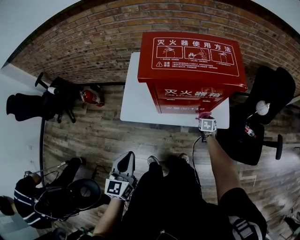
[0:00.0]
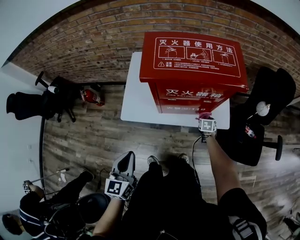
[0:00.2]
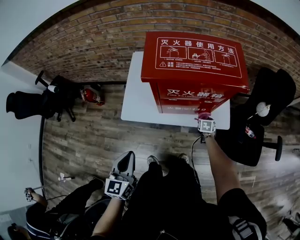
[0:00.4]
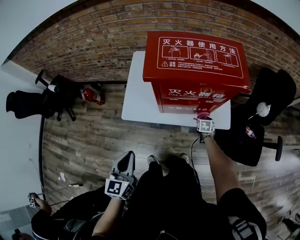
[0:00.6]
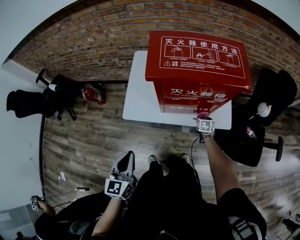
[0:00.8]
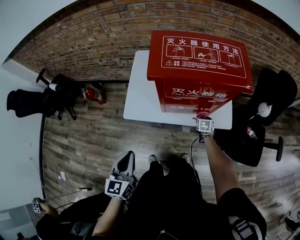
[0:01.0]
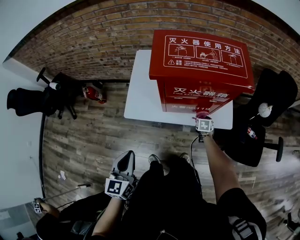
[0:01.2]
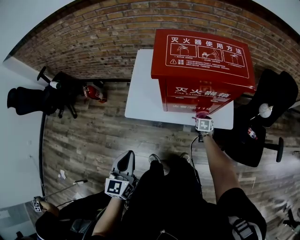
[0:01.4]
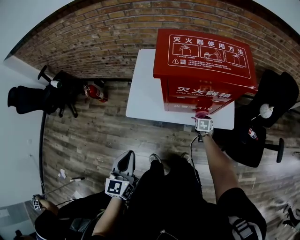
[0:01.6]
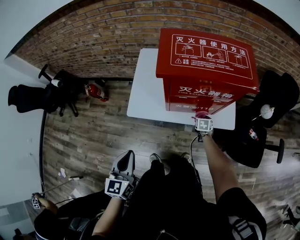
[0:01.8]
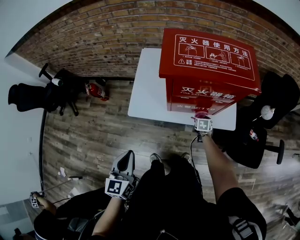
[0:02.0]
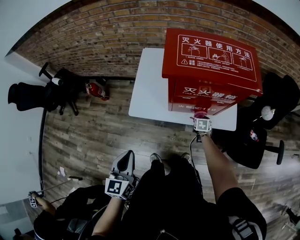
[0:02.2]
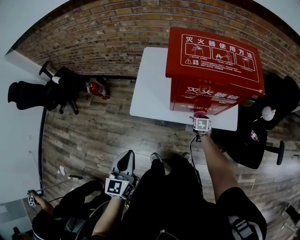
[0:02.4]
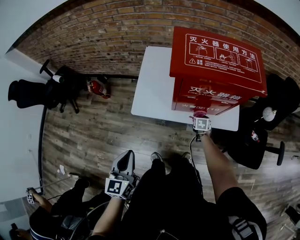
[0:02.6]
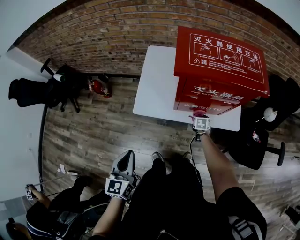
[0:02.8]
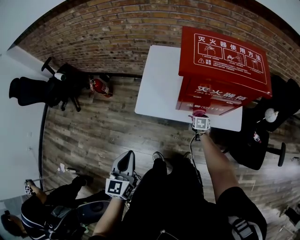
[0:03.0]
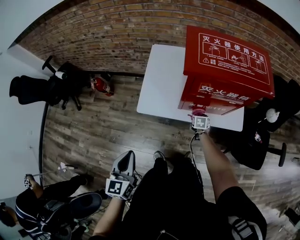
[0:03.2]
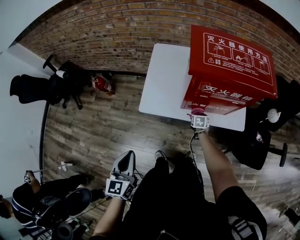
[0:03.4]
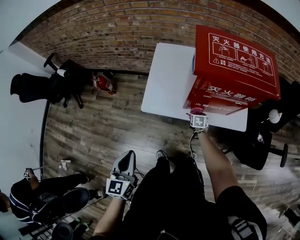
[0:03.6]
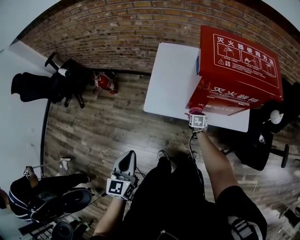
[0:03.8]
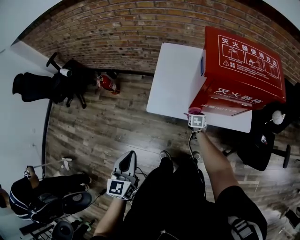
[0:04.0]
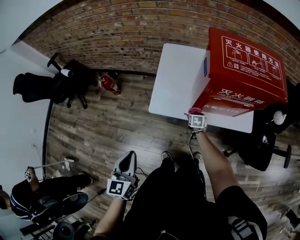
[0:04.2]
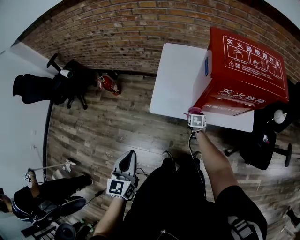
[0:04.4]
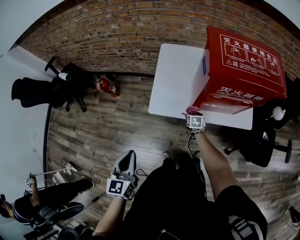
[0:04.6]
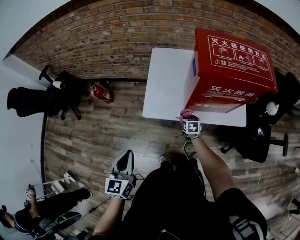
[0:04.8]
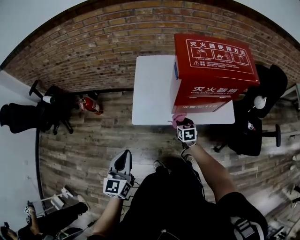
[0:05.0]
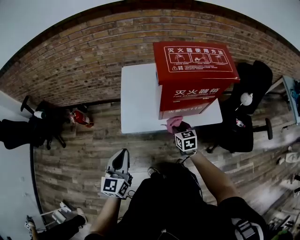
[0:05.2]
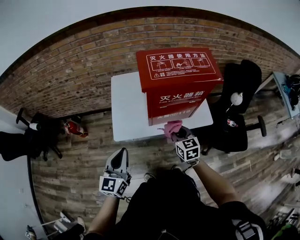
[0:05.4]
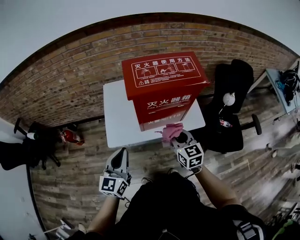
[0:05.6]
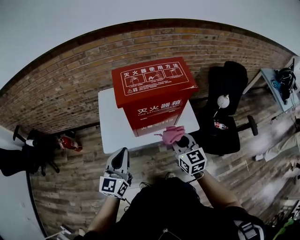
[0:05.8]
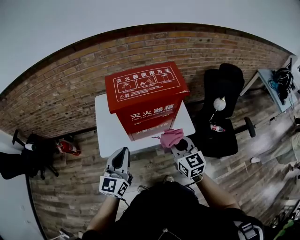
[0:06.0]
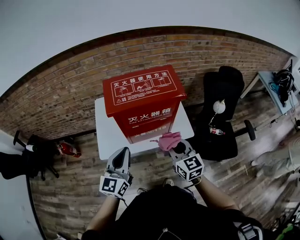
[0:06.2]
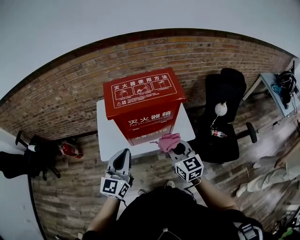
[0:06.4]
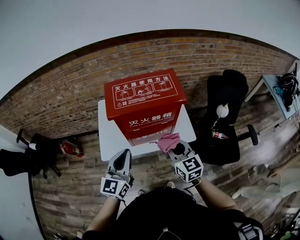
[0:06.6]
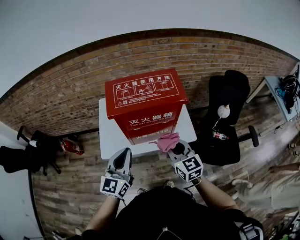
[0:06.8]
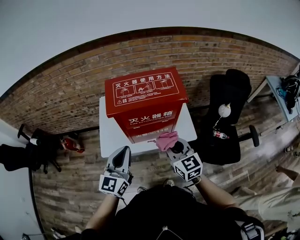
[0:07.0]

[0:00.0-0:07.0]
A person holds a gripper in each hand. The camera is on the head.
0:00.0 to 0:01.4: The right gripper moves to the left, roughly 5 cm.
0:01.4 to 0:02.8: The two grippers go some 5 cm to the left.
0:02.8 to 0:04.2: The left gripper travels to the left by roughly 10 cm. Meanwhile the right gripper moves to the left, approximately 15 cm.
0:04.2 to 0:05.6: The left gripper moves to the right, forward and upward, some 20 cm, and swivels approximately 30 degrees. Meanwhile the right gripper shifts approximately 35 cm upward, and angles its fingers upward, by roughly 40 degrees.
0:05.6 to 0:07.0: The left gripper is displaced to the right and upward by some 15 cm, while the right gripper goes some 10 cm upward and to the right.

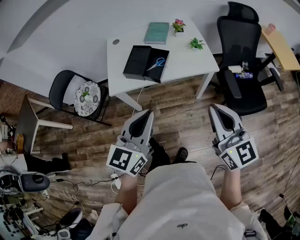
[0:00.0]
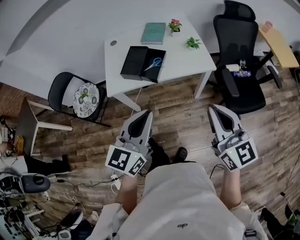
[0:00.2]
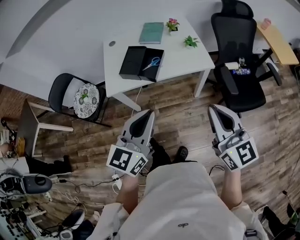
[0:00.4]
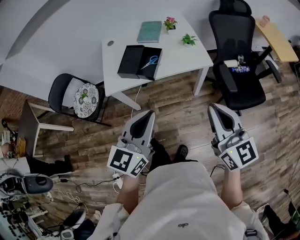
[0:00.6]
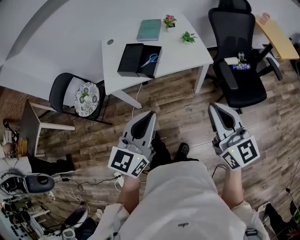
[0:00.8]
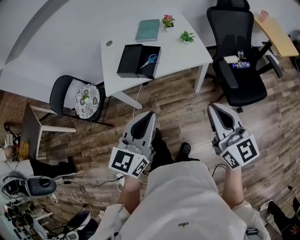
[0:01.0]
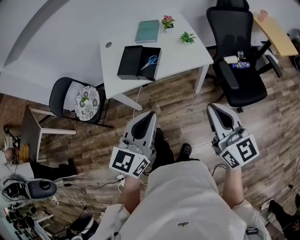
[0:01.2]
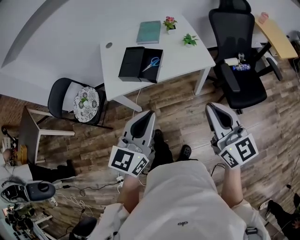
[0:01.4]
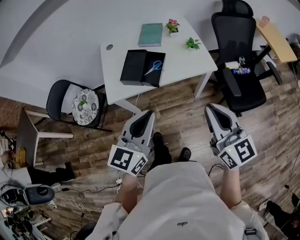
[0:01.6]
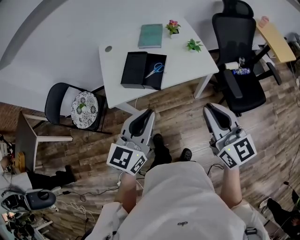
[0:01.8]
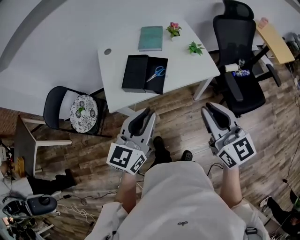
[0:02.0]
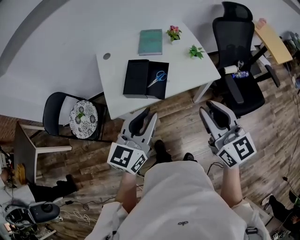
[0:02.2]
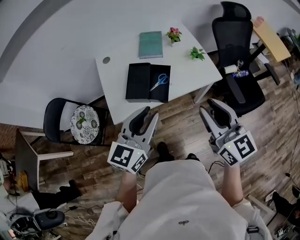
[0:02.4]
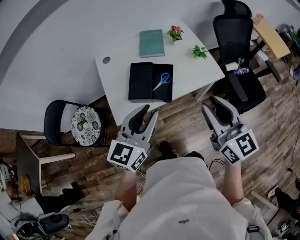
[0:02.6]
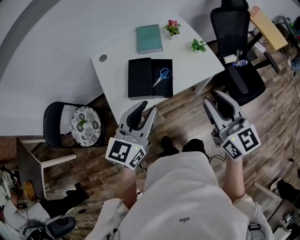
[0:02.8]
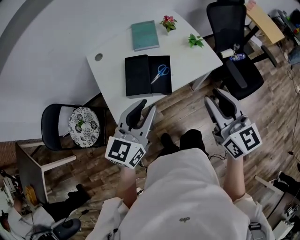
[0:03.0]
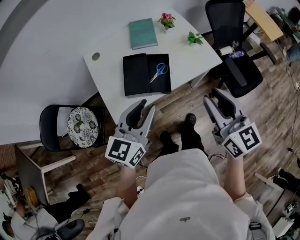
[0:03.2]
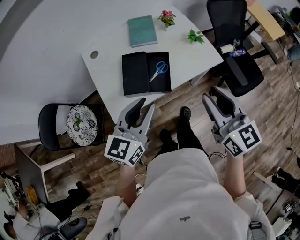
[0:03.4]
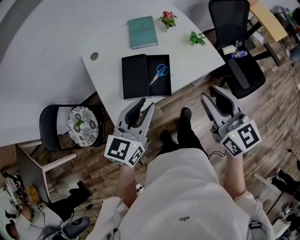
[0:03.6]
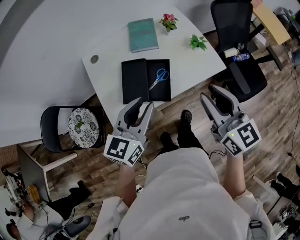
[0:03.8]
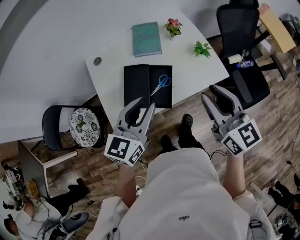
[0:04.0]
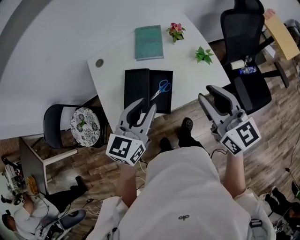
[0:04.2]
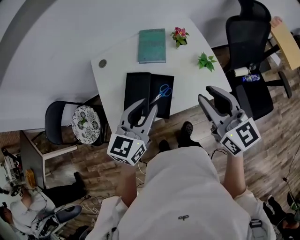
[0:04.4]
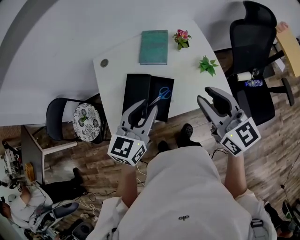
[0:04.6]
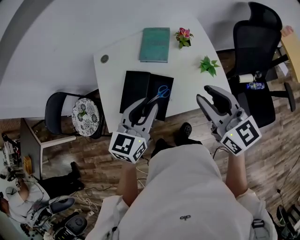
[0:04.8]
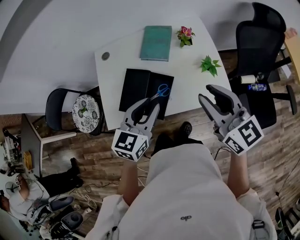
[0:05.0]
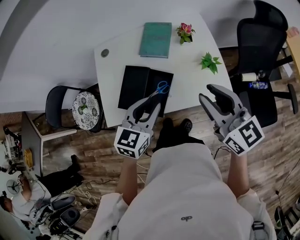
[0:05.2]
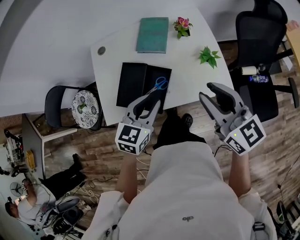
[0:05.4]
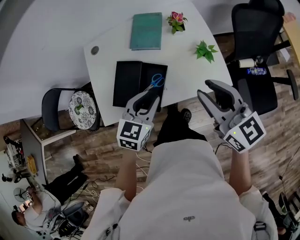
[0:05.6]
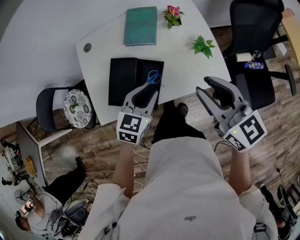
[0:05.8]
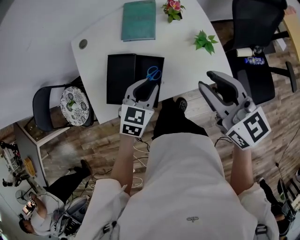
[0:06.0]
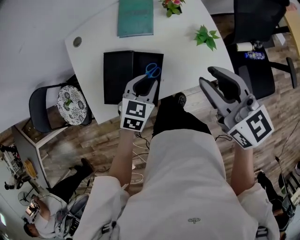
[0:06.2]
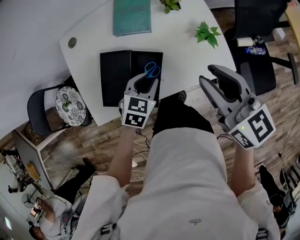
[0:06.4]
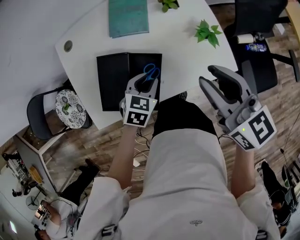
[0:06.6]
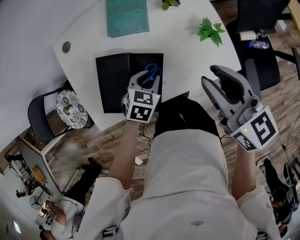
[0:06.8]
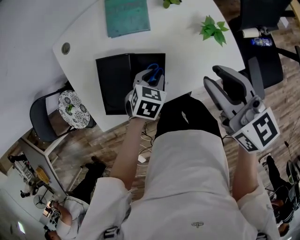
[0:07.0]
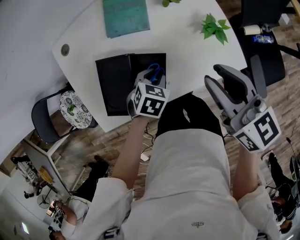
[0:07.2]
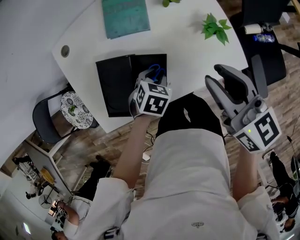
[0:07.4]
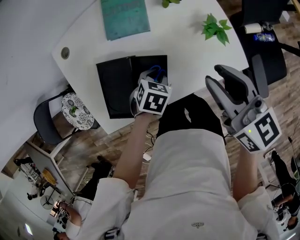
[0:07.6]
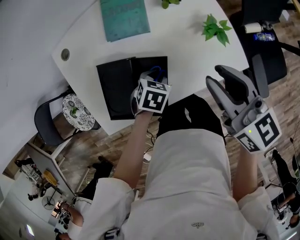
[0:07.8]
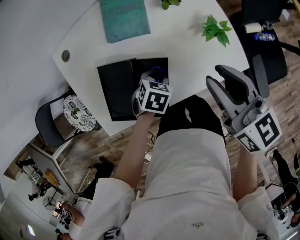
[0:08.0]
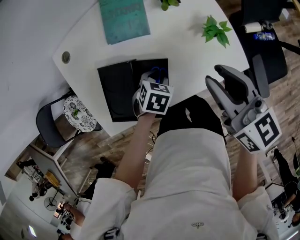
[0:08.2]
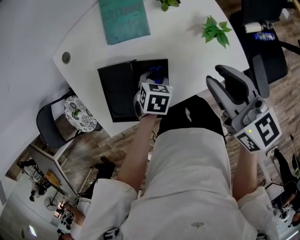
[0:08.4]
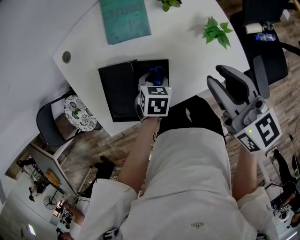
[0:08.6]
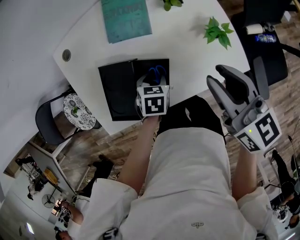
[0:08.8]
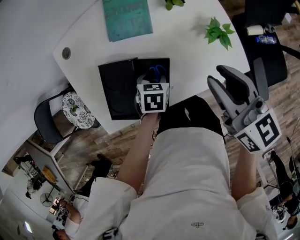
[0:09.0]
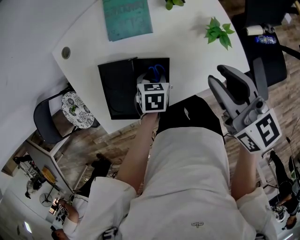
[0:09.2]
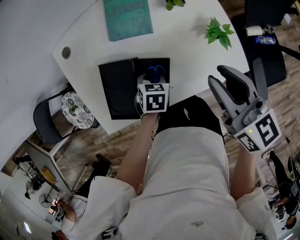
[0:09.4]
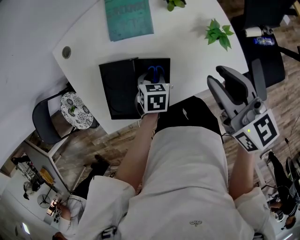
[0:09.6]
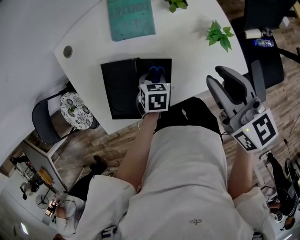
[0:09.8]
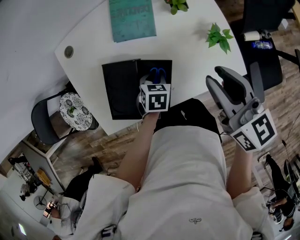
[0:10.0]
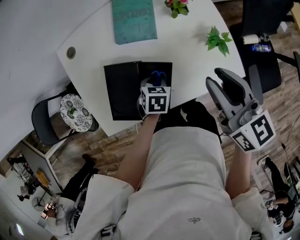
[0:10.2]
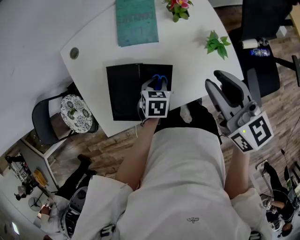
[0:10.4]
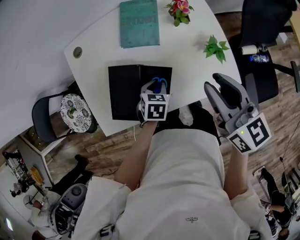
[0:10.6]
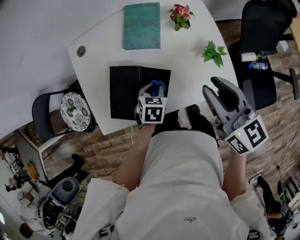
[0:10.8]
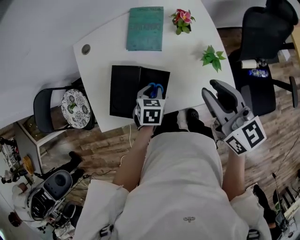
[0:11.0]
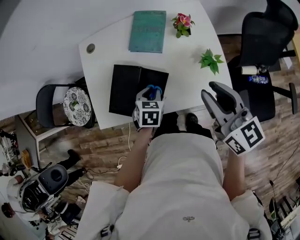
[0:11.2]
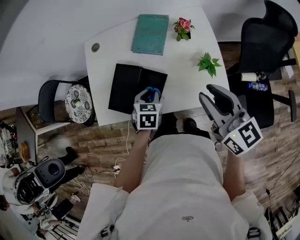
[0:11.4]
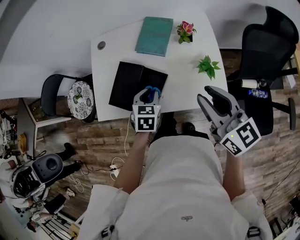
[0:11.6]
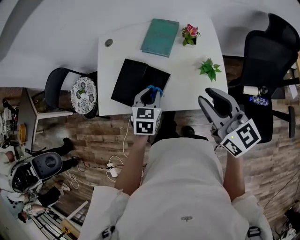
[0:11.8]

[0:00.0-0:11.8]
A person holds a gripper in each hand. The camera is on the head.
0:00.0 to 0:01.4: The grippers move only a little.
0:01.4 to 0:03.0: Both grippers travel together forward and to the left, about 20 cm. The right gripper opens its fingers. Meanwhile the left gripper opens its fingers.
0:03.0 to 0:04.4: The two grippers go about 15 cm forward.
0:04.4 to 0:06.0: The left gripper shifts approximately 15 cm downward, and rotates some 30 degrees. Meanwhile the right gripper moves approximately 5 cm.
0:06.0 to 0:07.4: The left gripper is displaced downward by approximately 15 cm, and swivels roughly 30 degrees; the right gripper is displaced downward and forward by some 10 cm.
0:07.4 to 0:08.8: The grippers stay close to where they were, moving slightly.
0:08.8 to 0:10.4: The grippers move only a little.
0:10.4 to 0:11.8: The left gripper goes some 15 cm upward, and changes its angle by some 30 degrees. The right gripper shifts by approximately 10 cm, and changes its angle by about 30 degrees.

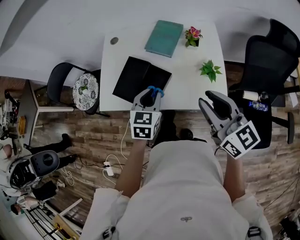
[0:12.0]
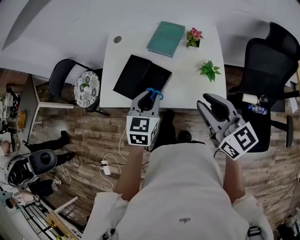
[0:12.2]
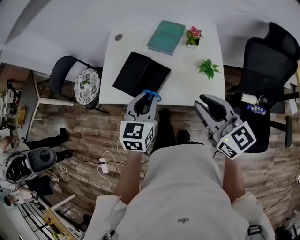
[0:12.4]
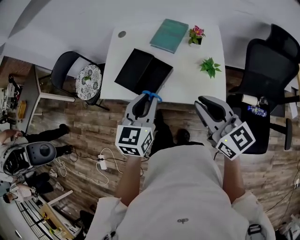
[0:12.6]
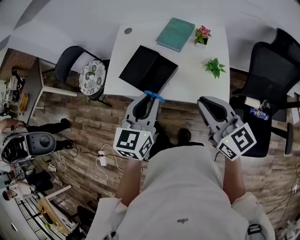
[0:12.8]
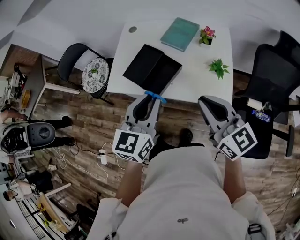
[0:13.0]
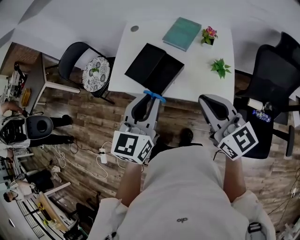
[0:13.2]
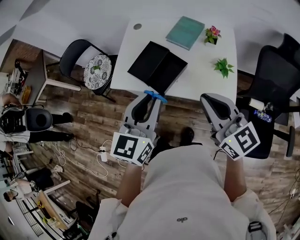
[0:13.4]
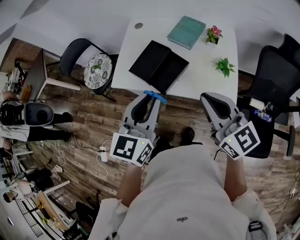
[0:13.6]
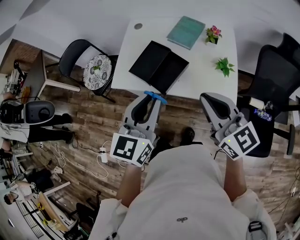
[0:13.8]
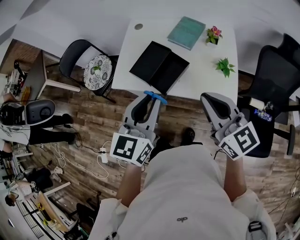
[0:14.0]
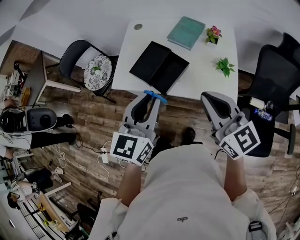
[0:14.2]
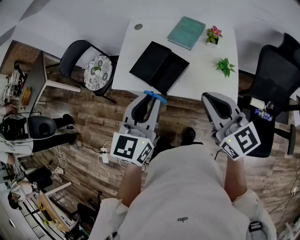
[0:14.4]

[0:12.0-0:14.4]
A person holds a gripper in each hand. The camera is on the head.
0:12.0 to 0:13.2: The right gripper shifts roughly 10 cm to the left and backward, and closes. Meanwhile the left gripper heads upward and backward, covering about 20 cm, and swivels about 20 degrees.
0:13.2 to 0:14.4: There are only small adjustments of the grippers.

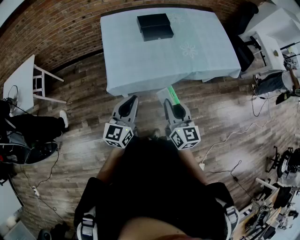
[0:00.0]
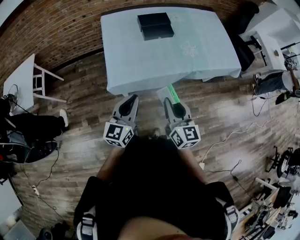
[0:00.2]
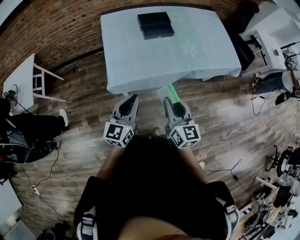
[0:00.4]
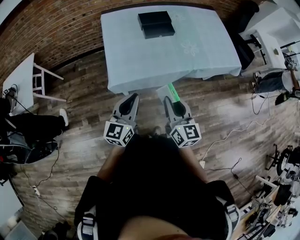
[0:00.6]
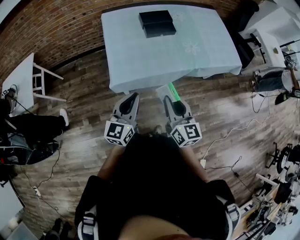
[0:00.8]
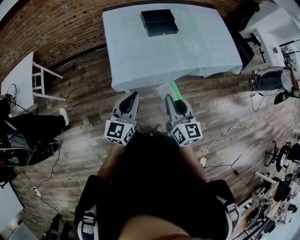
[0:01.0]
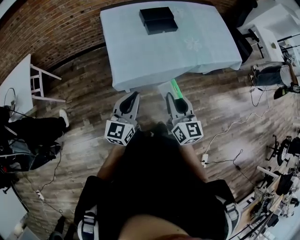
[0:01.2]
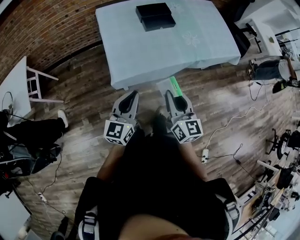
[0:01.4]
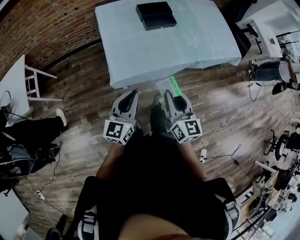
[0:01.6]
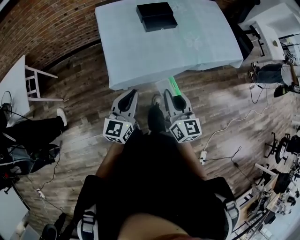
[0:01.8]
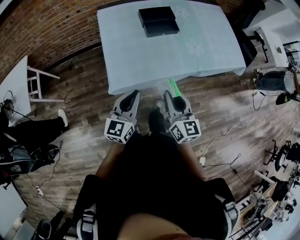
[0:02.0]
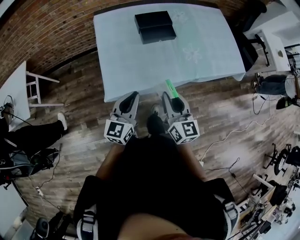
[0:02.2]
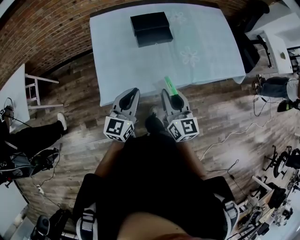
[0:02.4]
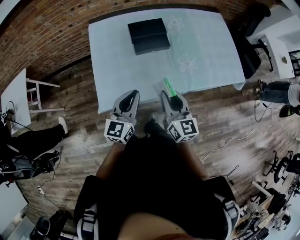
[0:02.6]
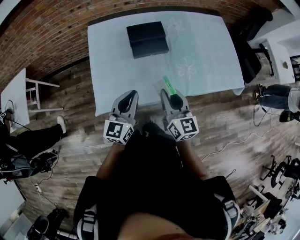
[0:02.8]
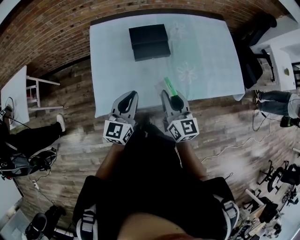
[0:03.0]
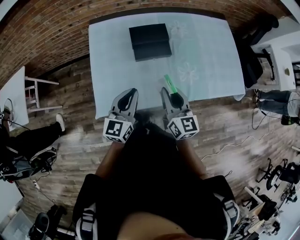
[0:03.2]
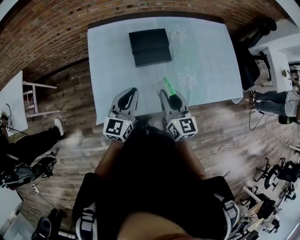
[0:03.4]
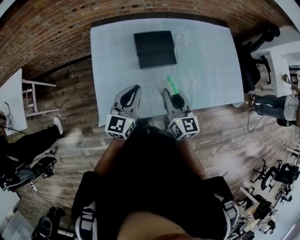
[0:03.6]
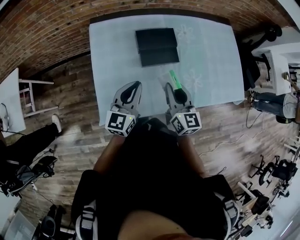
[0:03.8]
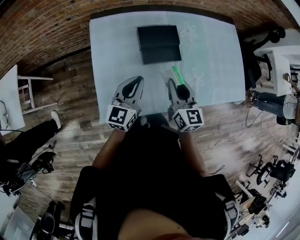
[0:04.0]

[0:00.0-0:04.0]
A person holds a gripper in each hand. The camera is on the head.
0:00.0 to 0:01.4: Both grippers move to the left, some 10 cm.
0:01.4 to 0:02.6: The grippers both shift forward and to the right by approximately 25 cm.
0:02.6 to 0:04.0: The grippers both shift forward by approximately 20 cm.
